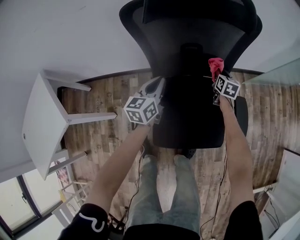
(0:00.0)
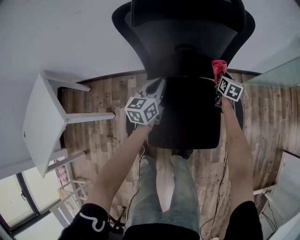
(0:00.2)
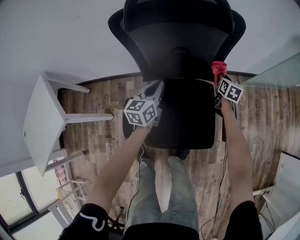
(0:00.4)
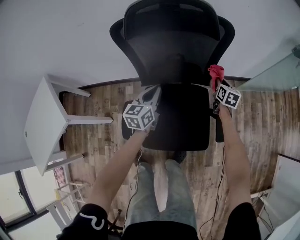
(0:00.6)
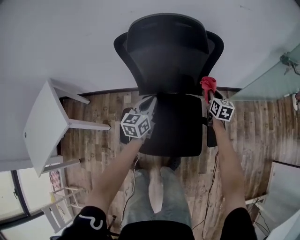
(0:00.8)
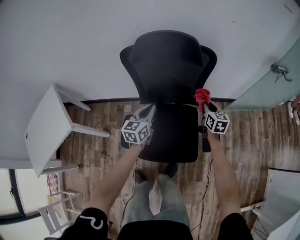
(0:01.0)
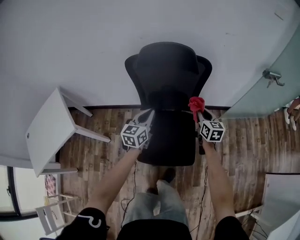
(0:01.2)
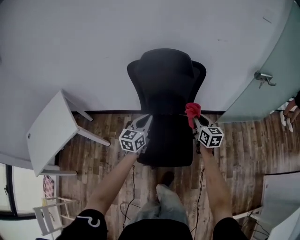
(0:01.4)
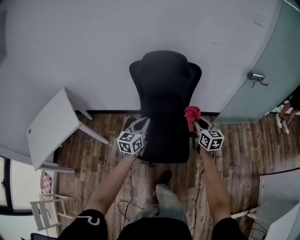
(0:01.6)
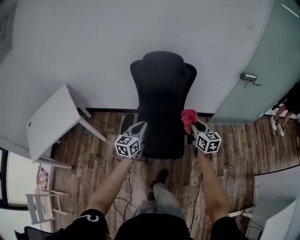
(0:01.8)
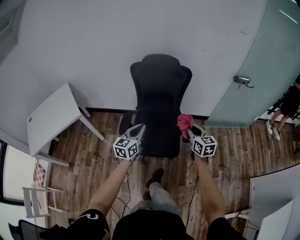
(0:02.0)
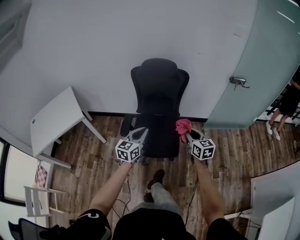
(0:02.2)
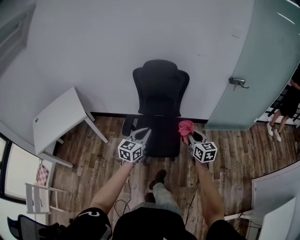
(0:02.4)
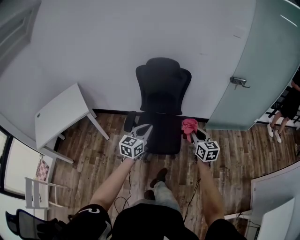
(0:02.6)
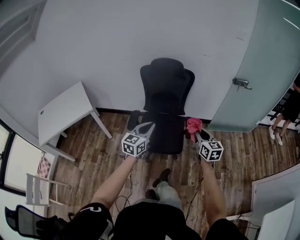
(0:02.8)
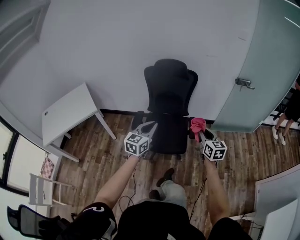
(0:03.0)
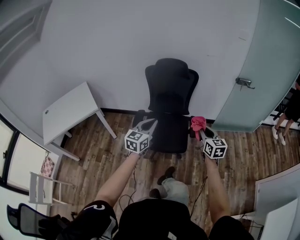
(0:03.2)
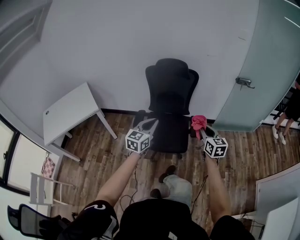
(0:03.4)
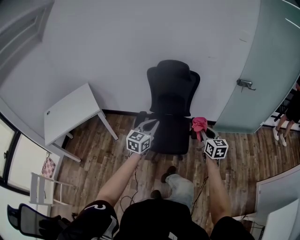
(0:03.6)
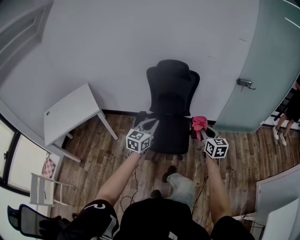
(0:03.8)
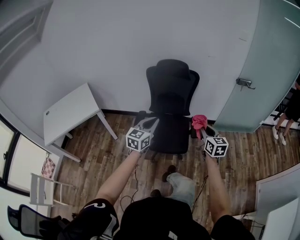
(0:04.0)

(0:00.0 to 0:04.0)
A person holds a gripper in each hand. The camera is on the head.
0:00.0 - 0:01.4: The left gripper goes roughly 30 cm upward, backward and to the right; the right gripper moves upward and backward, about 35 cm, and swivels roughly 30 degrees.
0:01.4 - 0:02.6: The two grippers go approximately 30 cm backward.
0:02.6 - 0:04.0: The left gripper changes place by approximately 5 cm.

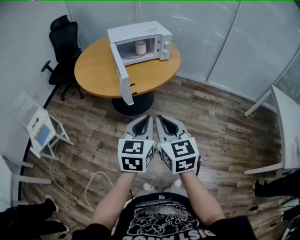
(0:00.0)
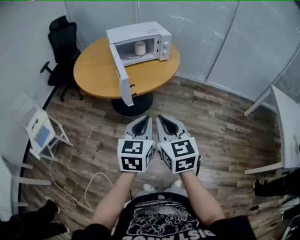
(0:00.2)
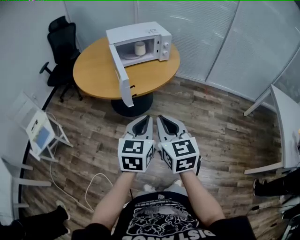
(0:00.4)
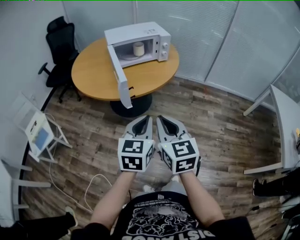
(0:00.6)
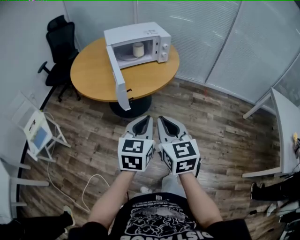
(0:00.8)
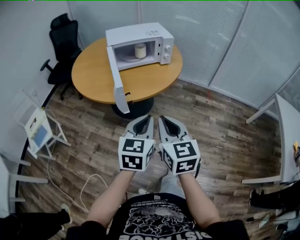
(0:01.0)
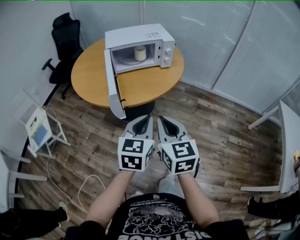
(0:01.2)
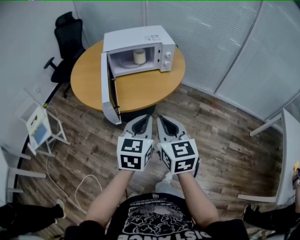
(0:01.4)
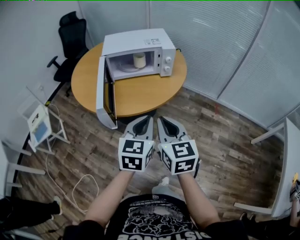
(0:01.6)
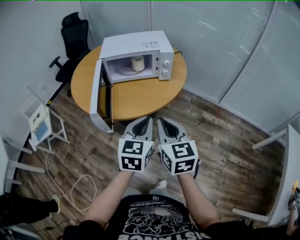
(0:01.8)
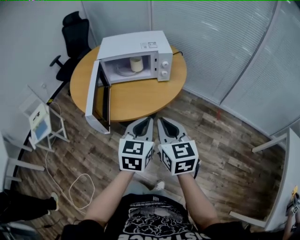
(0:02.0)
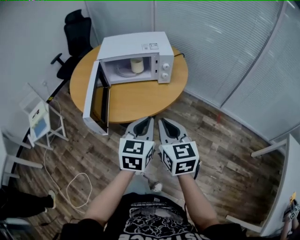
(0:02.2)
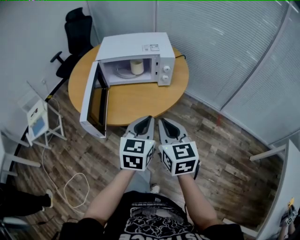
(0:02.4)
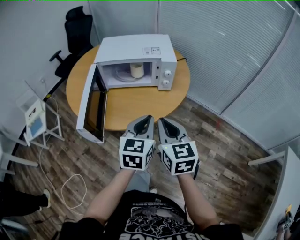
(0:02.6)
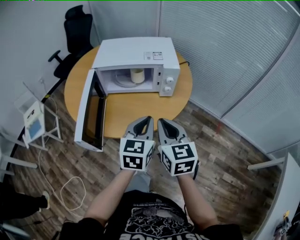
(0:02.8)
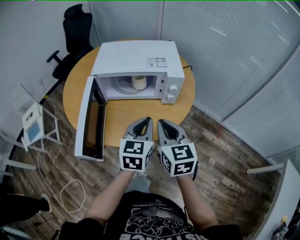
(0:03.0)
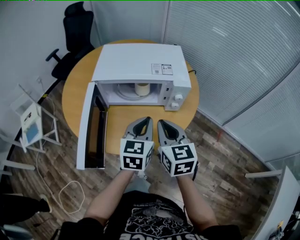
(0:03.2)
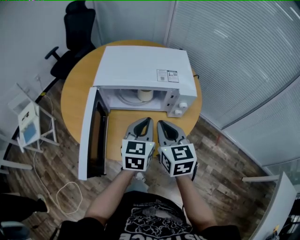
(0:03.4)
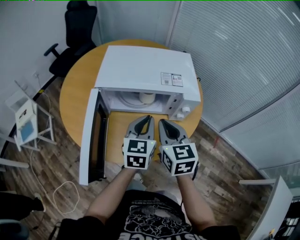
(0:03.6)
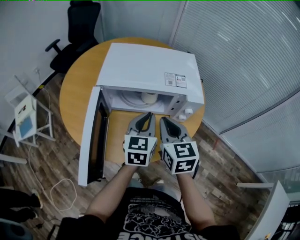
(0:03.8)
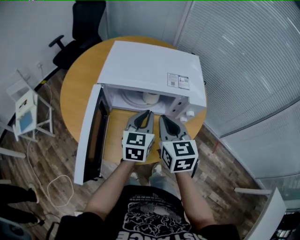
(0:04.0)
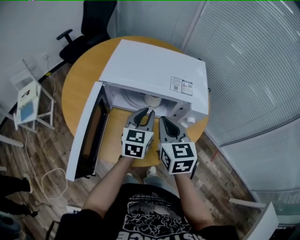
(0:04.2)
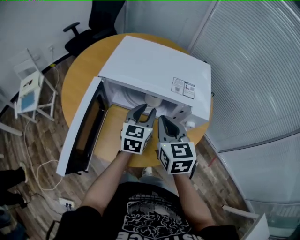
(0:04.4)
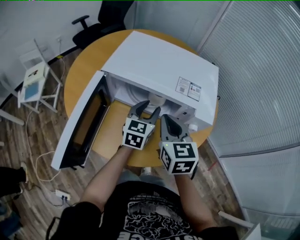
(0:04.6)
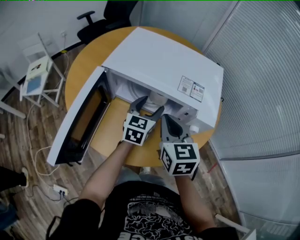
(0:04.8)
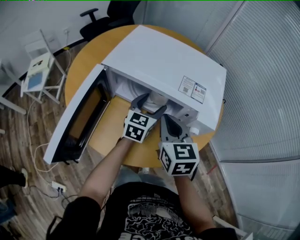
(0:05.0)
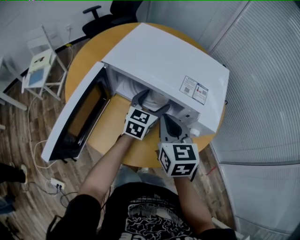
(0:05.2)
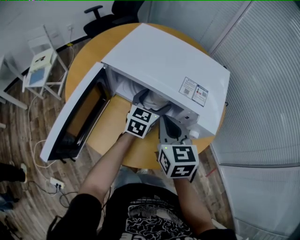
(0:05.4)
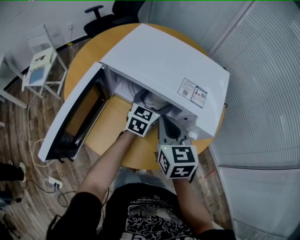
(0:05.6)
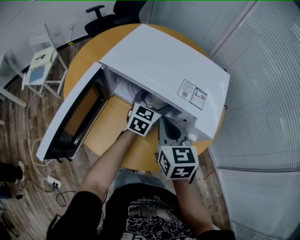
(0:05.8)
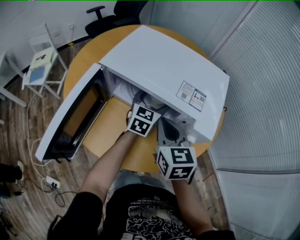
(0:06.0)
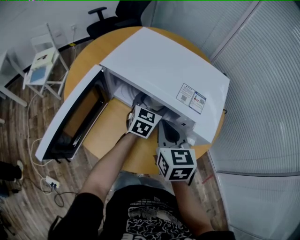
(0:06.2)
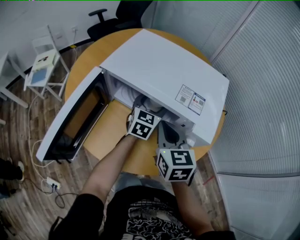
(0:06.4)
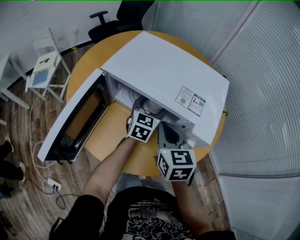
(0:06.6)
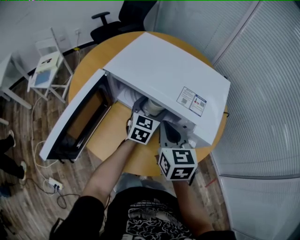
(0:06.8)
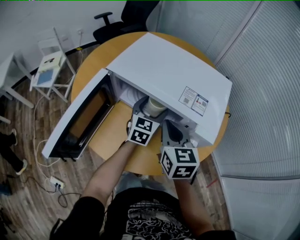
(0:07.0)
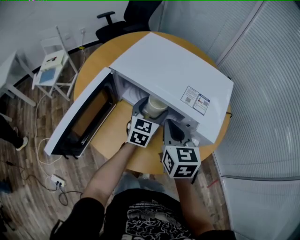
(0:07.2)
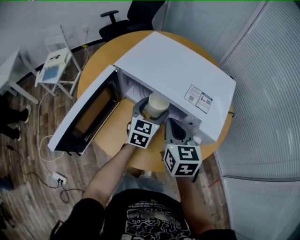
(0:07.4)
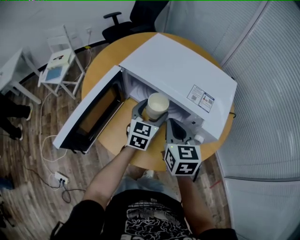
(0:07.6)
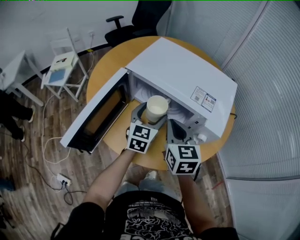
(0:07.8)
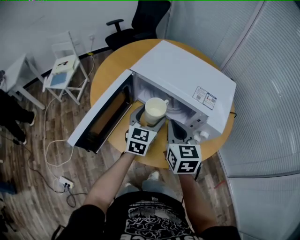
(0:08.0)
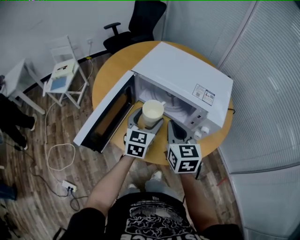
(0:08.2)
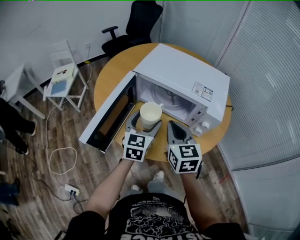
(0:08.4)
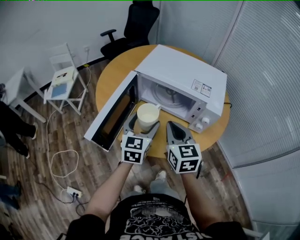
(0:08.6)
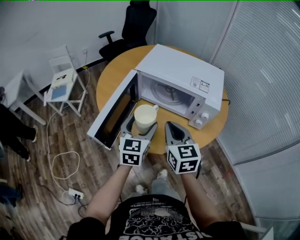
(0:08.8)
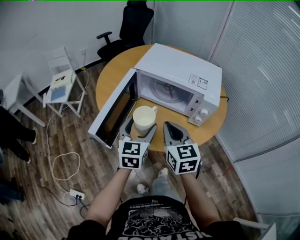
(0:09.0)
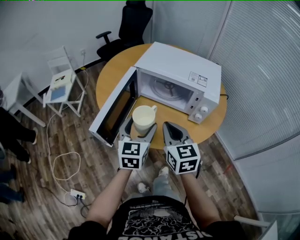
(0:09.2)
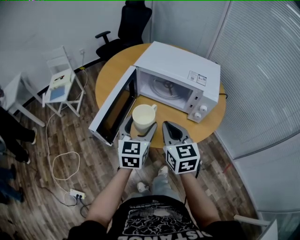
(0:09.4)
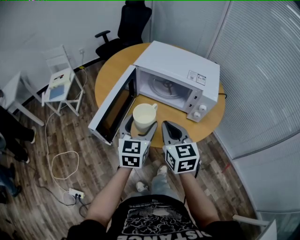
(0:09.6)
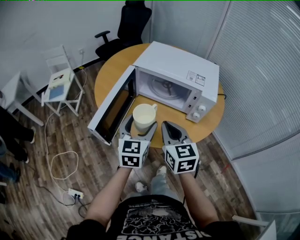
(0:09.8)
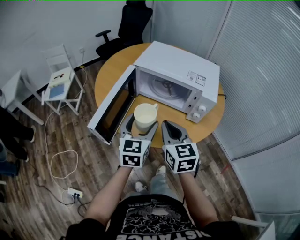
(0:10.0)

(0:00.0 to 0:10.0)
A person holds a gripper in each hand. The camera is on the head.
0:00.0 - 0:01.4: Both grippers move forward and to the right, approximately 20 cm.
0:01.4 - 0:02.8: The grippers both shift forward and to the right by approximately 25 cm.
0:02.8 - 0:04.2: Both grippers move forward, roughly 20 cm.
0:04.2 - 0:05.8: The left gripper goes approximately 15 cm forward and downward, and opens its fingers. Meanwhile the right gripper moves about 5 cm.
0:05.8 - 0:07.2: There are only small adjustments of the grippers.
0:07.2 - 0:08.6: The right gripper shifts some 15 cm backward and to the left; the left gripper moves backward, to the left and upward, some 20 cm.
0:08.6 - 0:10.0: The grippers both shift backward by approximately 5 cm.

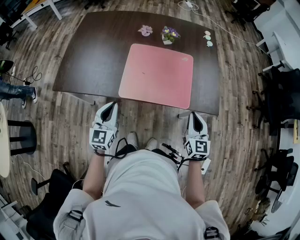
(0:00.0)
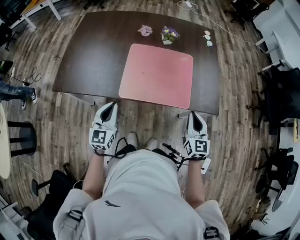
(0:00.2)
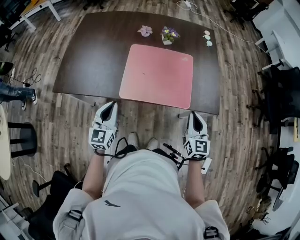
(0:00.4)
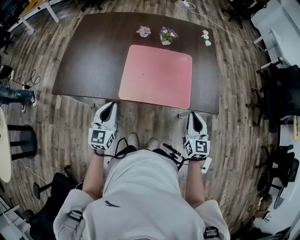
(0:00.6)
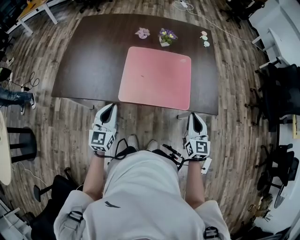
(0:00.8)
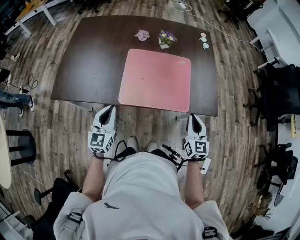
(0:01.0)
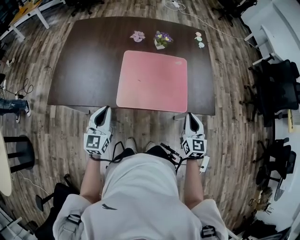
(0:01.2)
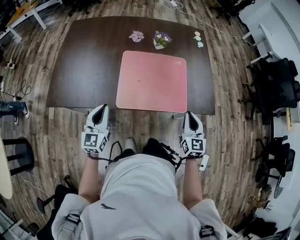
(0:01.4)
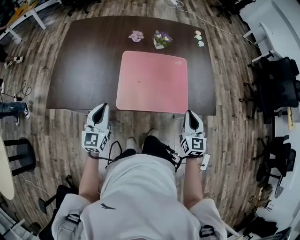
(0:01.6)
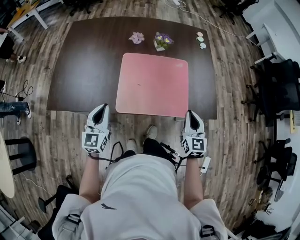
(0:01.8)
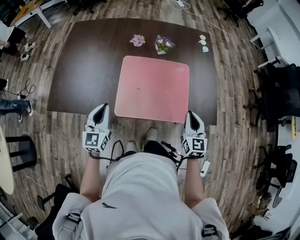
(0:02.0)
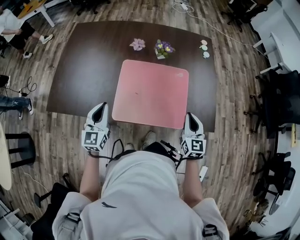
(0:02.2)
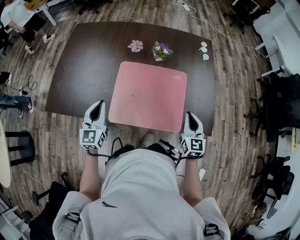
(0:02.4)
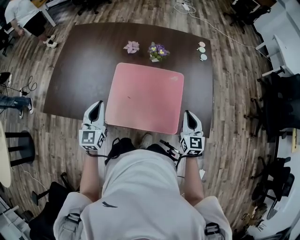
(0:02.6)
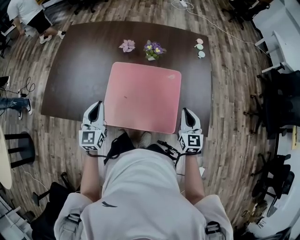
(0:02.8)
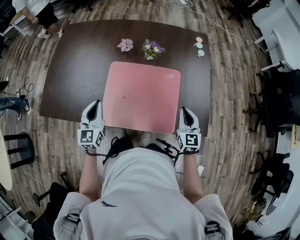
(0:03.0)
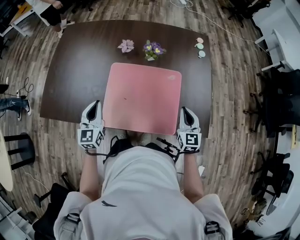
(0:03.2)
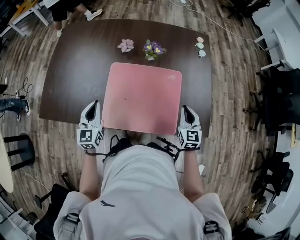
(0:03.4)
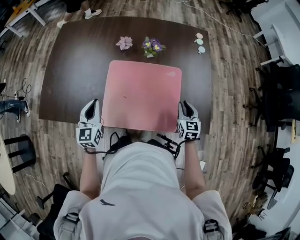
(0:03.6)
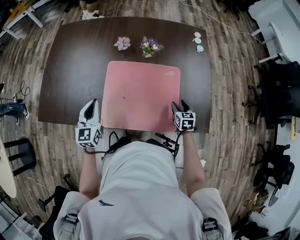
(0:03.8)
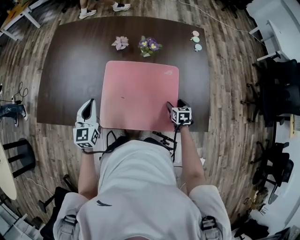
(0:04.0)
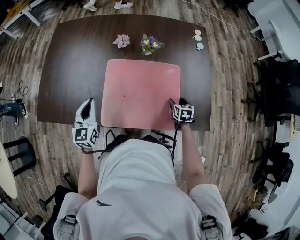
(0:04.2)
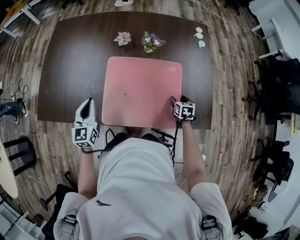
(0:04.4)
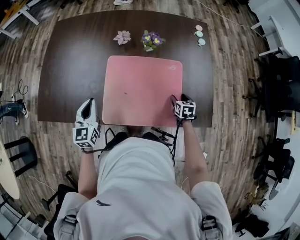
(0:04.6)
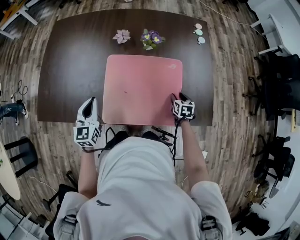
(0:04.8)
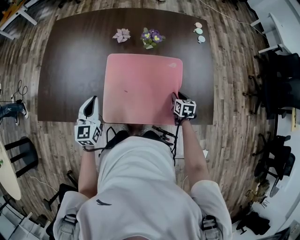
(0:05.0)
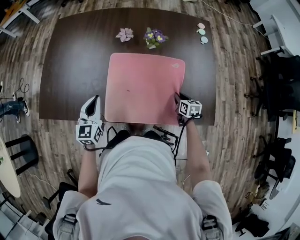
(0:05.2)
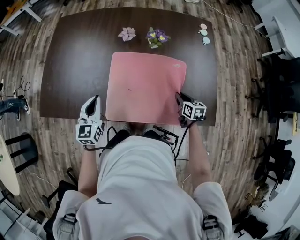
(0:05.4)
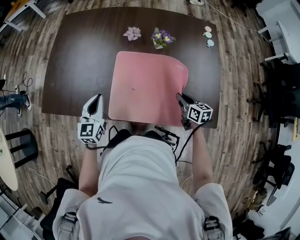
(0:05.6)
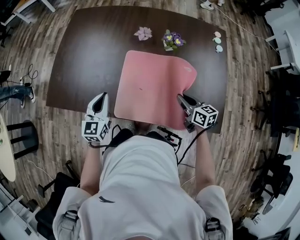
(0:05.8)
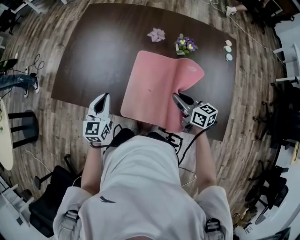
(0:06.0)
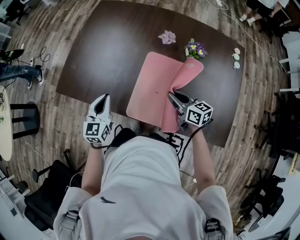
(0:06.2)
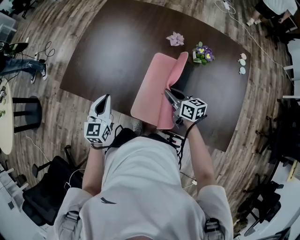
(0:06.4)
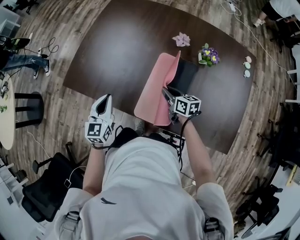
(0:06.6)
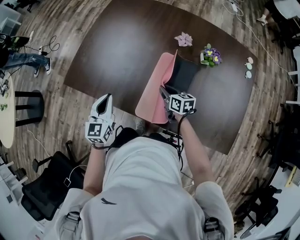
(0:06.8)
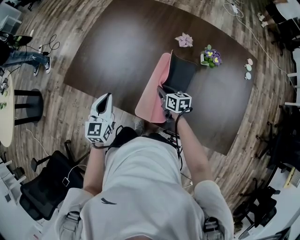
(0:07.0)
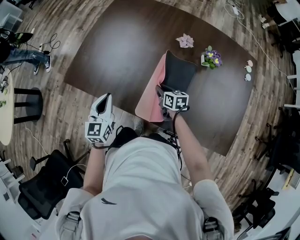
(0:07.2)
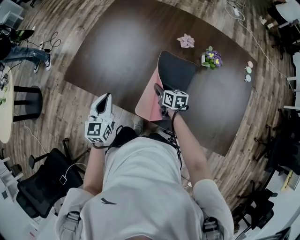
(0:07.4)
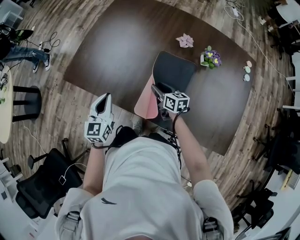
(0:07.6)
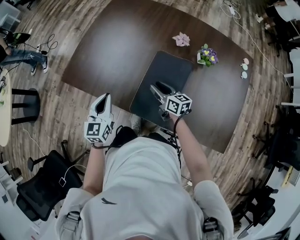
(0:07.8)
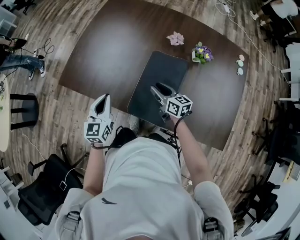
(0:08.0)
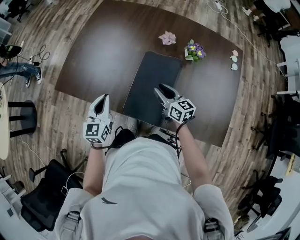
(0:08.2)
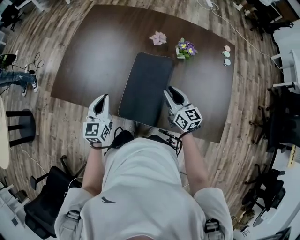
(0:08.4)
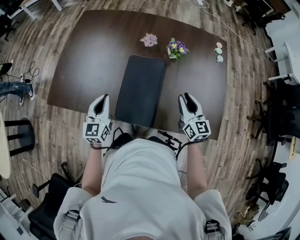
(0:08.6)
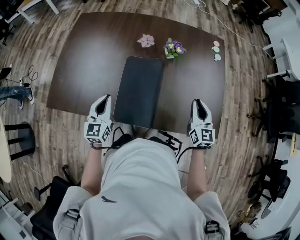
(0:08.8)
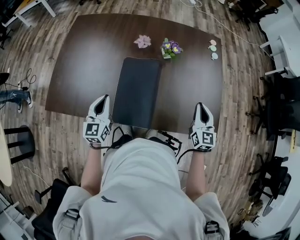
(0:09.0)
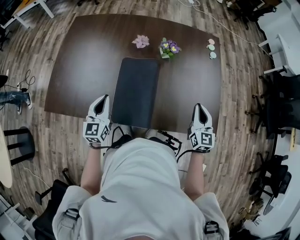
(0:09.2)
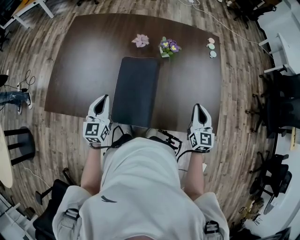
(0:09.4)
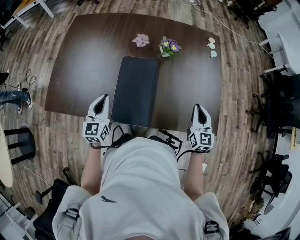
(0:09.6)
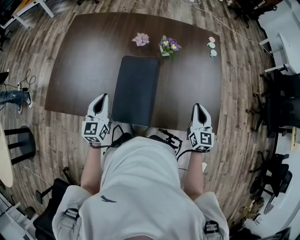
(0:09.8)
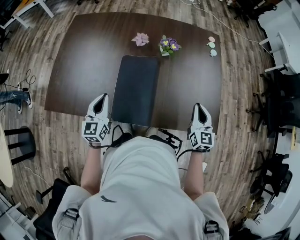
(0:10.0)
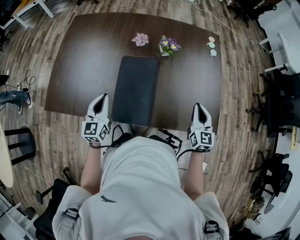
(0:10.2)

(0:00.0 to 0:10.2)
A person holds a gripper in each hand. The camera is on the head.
0:00.0 - 0:01.4: The left gripper moves to the left, some 5 cm.
0:01.4 - 0:03.0: The two grippers go about 15 cm forward and to the right.
0:03.0 - 0:04.4: The left gripper changes place by roughly 5 cm; the right gripper shifts some 20 cm downward, tilts its fingers approximately 40 degrees downward, and opens its fingers.
0:04.4 - 0:05.8: The right gripper heads upward and to the left, covering roughly 20 cm, rotates approximately 40 degrees, and closes its fingers.
0:05.8 - 0:07.2: The right gripper moves to the left, forward and downward, some 30 cm, while the left gripper is displaced to the left by approximately 10 cm.
0:07.2 - 0:08.8: The left gripper changes place by roughly 10 cm, while the right gripper shifts by approximately 35 cm, turns by roughly 50 degrees, and opens, then closes once more.
0:08.8 - 0:10.2: There are only small adjustments of the grippers.
